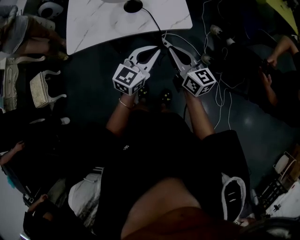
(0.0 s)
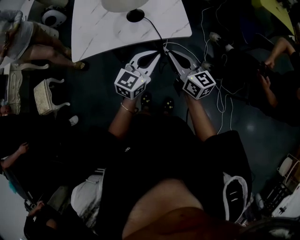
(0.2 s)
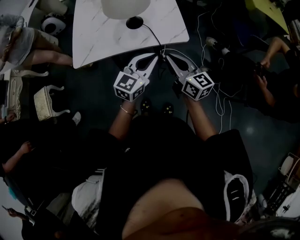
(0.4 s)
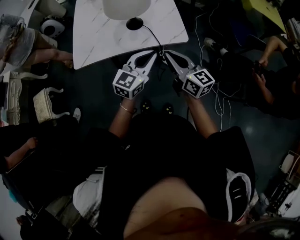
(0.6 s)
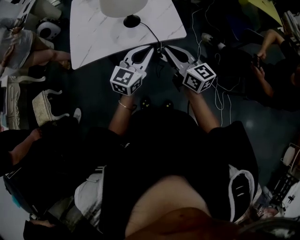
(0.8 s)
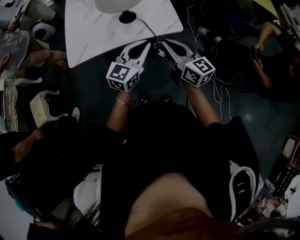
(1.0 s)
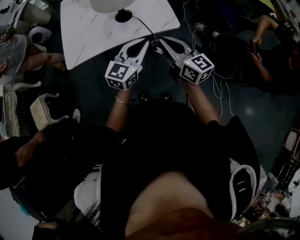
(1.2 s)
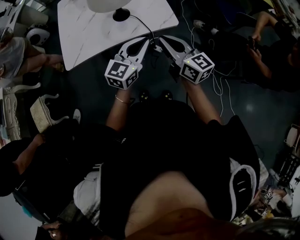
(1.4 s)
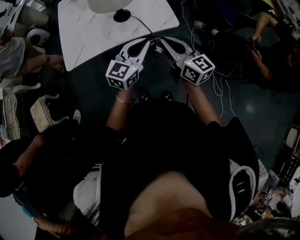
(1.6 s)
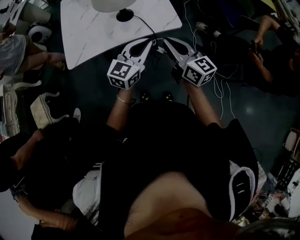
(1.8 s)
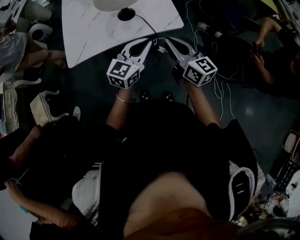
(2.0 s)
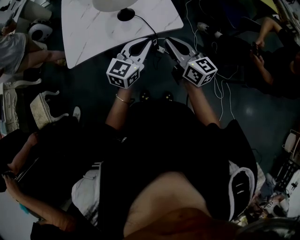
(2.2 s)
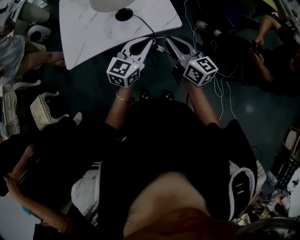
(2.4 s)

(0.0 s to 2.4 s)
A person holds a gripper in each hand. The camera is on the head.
0.0 s - 1.2 s: The grippers both shift upward by some 5 cm.
1.2 s - 2.4 s: The grippers stay close to where they were, moving slightly.

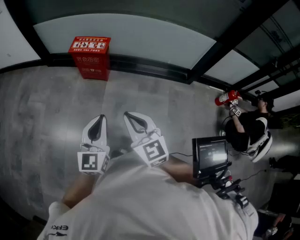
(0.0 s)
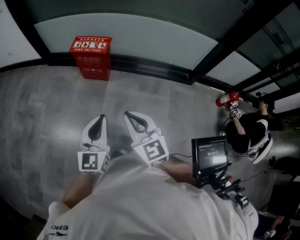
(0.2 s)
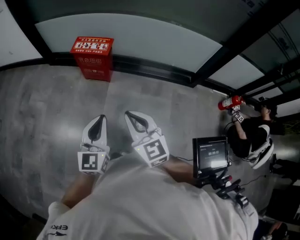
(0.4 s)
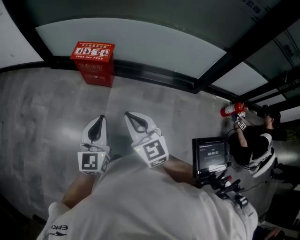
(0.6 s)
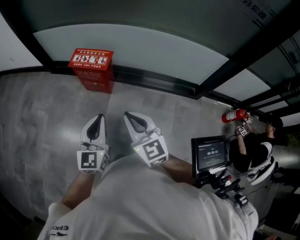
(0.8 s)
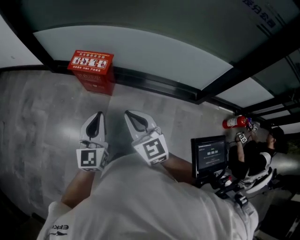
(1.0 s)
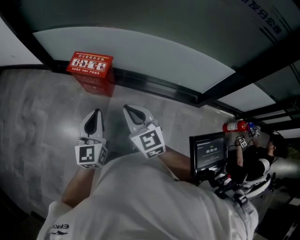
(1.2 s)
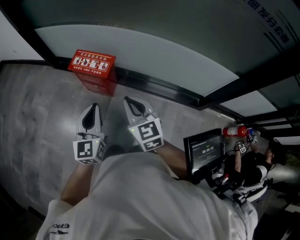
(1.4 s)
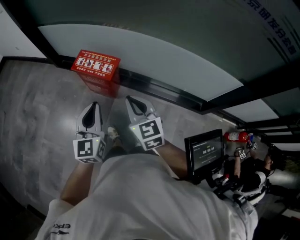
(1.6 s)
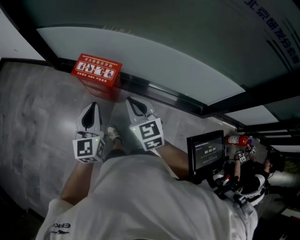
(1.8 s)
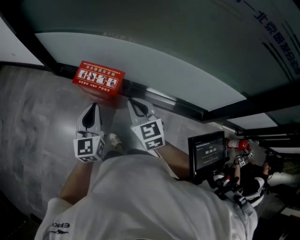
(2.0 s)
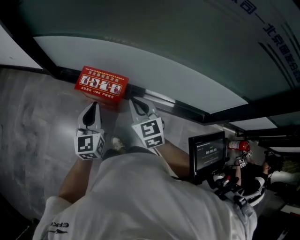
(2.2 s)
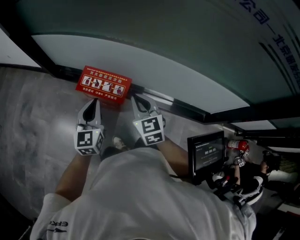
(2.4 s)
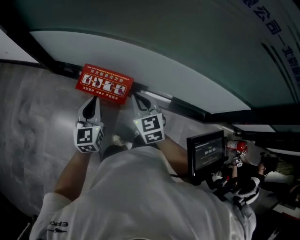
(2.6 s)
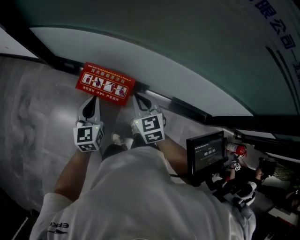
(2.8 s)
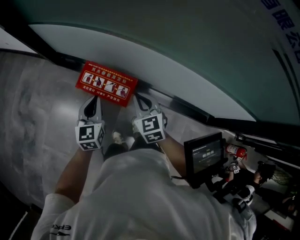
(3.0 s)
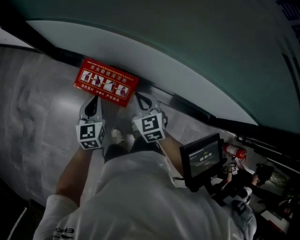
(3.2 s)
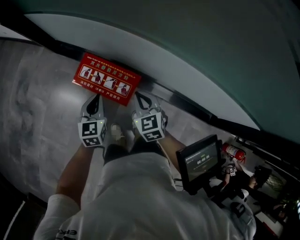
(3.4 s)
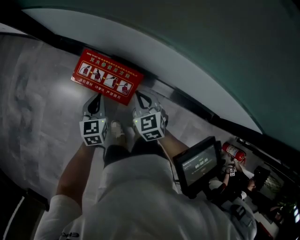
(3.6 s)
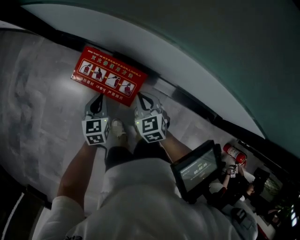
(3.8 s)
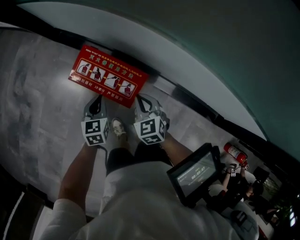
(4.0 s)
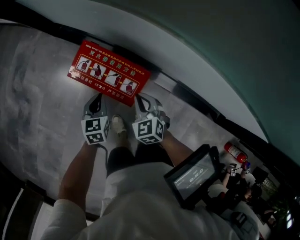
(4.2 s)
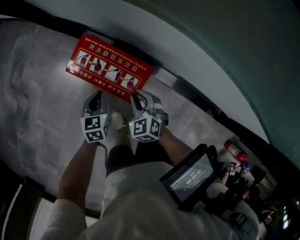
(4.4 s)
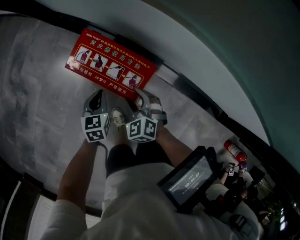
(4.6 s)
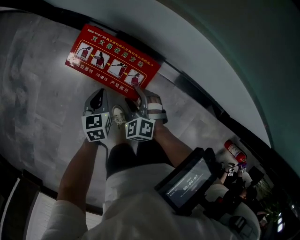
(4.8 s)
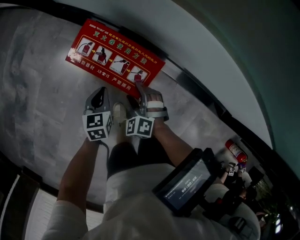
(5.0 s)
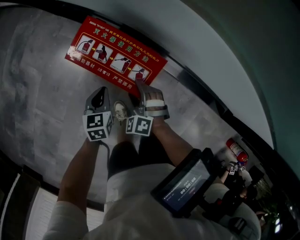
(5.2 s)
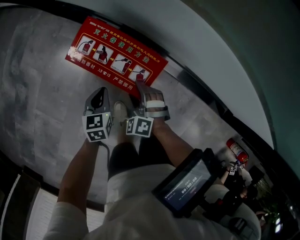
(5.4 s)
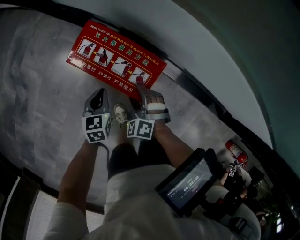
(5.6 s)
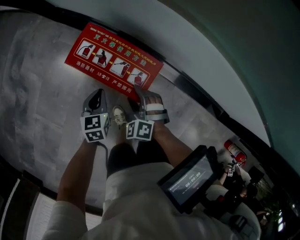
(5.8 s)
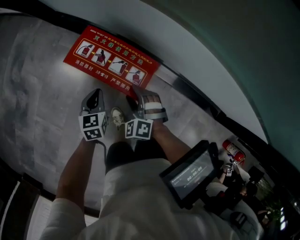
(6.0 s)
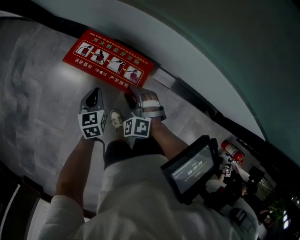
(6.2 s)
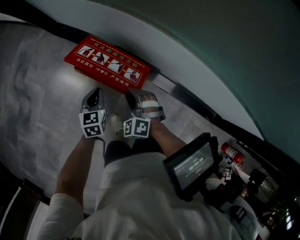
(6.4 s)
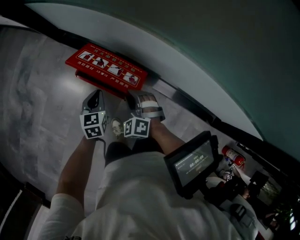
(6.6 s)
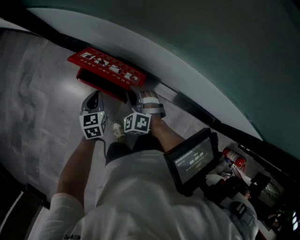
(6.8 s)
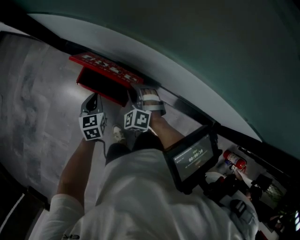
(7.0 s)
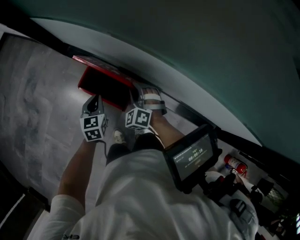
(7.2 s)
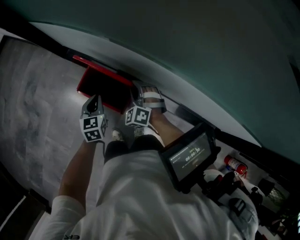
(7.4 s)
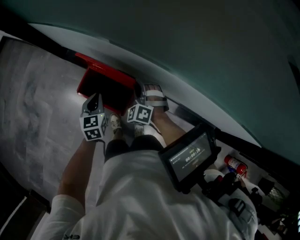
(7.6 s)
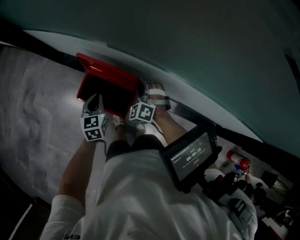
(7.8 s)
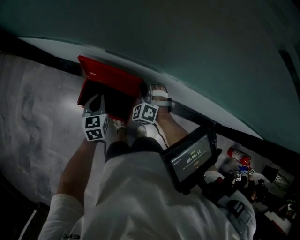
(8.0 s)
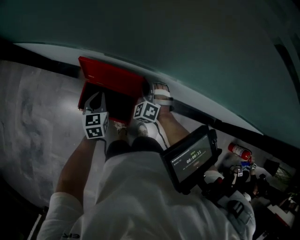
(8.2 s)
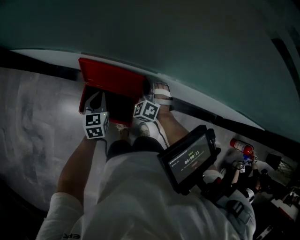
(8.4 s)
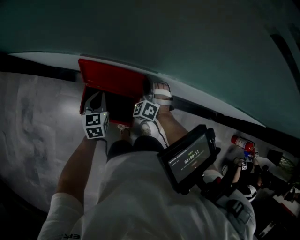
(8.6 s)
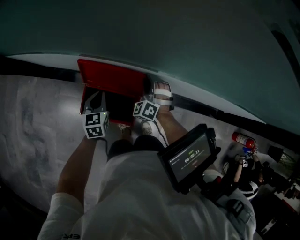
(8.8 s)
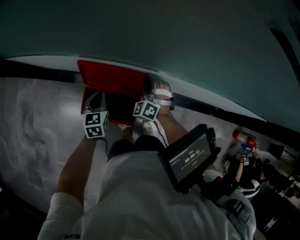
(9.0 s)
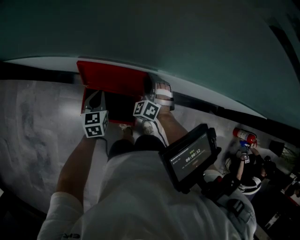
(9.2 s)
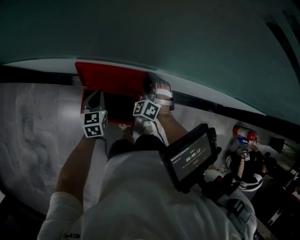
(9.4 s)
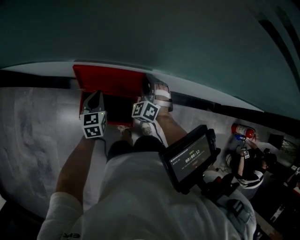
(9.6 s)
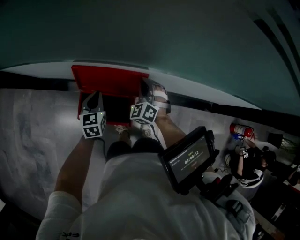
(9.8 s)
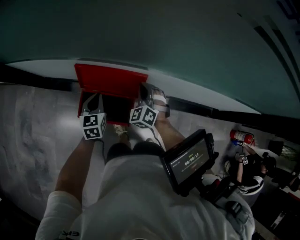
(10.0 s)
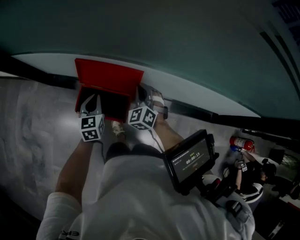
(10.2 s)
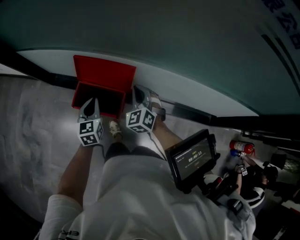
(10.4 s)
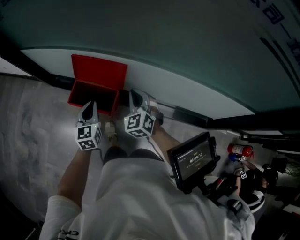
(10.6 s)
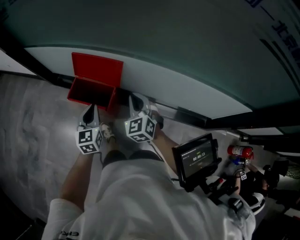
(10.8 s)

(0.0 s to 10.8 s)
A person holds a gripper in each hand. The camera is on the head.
0.0 s - 1.6 s: The two grippers go some 35 cm forward.
1.6 s - 3.0 s: The left gripper travels forward and downward by approximately 30 cm. Meanwhile the right gripper moves forward, approximately 30 cm.
3.0 s - 4.6 s: Both grippers move downward, about 25 cm. The left gripper swivels approximately 30 degrees. The right gripper changes its angle by some 30 degrees, and opens its fingers.
4.6 s - 6.2 s: The right gripper turns by approximately 20 degrees.
6.2 s - 7.8 s: The left gripper is displaced upward and forward by some 20 cm; the right gripper moves forward, upward and to the right, approximately 25 cm.
7.8 s - 9.2 s: The right gripper heads to the right, covering roughly 5 cm, and changes its angle by approximately 20 degrees. The left gripper shifts roughly 5 cm forward.
9.2 s - 10.8 s: The left gripper heads backward, to the right and upward, covering approximately 25 cm. The right gripper heads backward, upward and to the right, covering approximately 25 cm, turns by about 30 degrees, and closes its fingers.

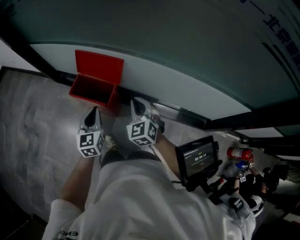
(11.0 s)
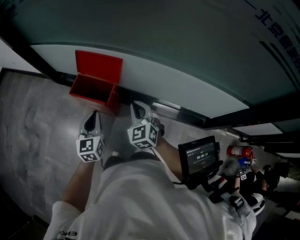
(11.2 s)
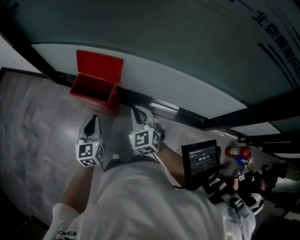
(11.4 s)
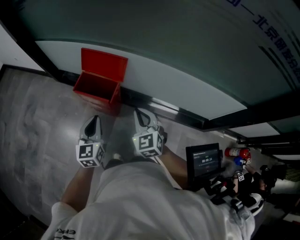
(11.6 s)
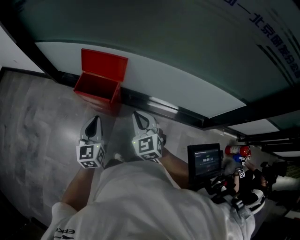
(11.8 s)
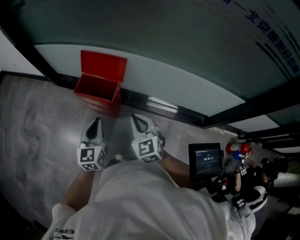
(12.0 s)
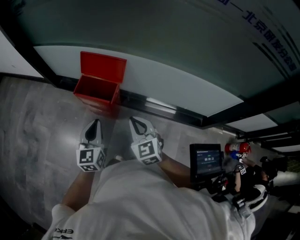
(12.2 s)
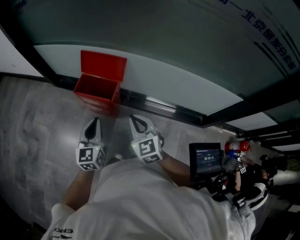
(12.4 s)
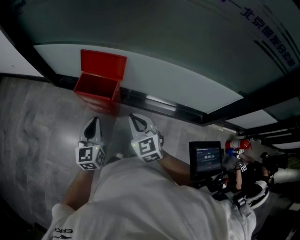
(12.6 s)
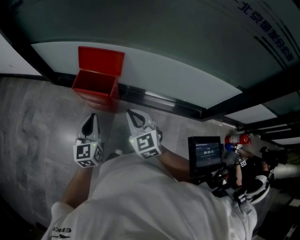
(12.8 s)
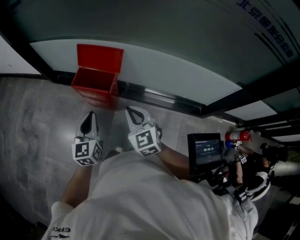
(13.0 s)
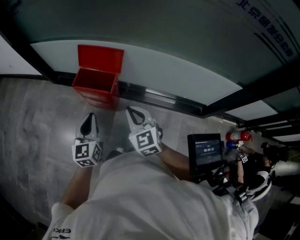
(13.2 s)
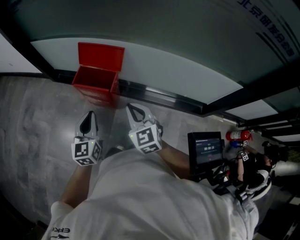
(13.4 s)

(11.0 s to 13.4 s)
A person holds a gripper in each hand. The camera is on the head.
11.0 s - 12.2 s: The right gripper heads backward and to the left, covering some 15 cm, while the left gripper shifts roughly 10 cm backward and upward.
12.2 s - 13.4 s: The grippers move only a little.

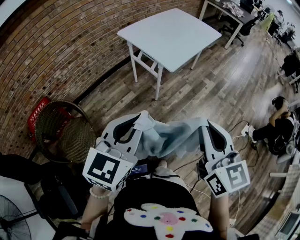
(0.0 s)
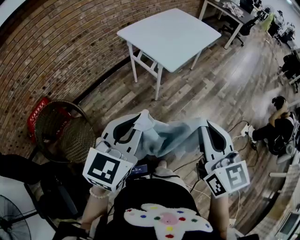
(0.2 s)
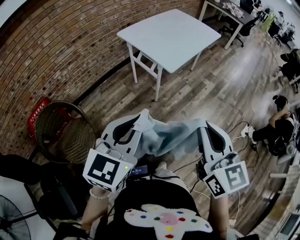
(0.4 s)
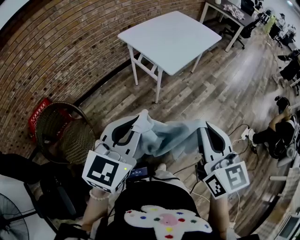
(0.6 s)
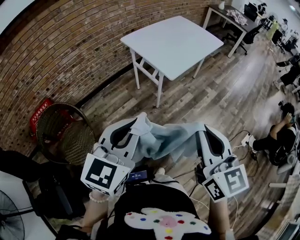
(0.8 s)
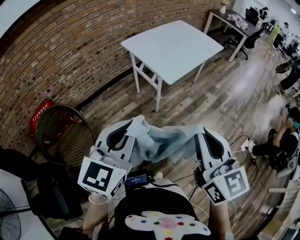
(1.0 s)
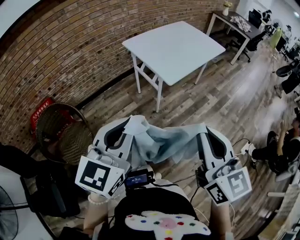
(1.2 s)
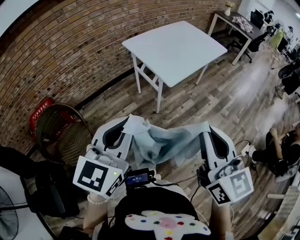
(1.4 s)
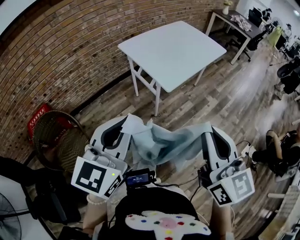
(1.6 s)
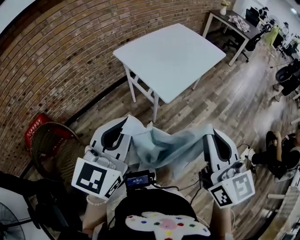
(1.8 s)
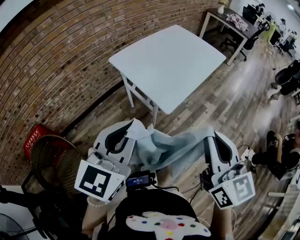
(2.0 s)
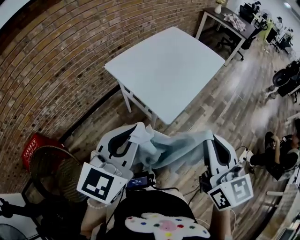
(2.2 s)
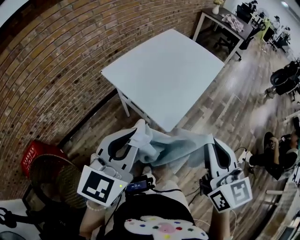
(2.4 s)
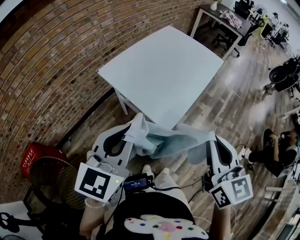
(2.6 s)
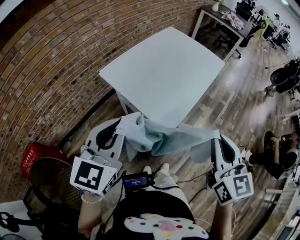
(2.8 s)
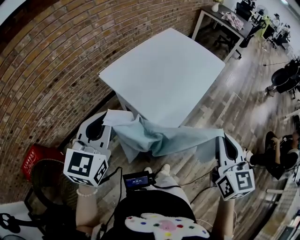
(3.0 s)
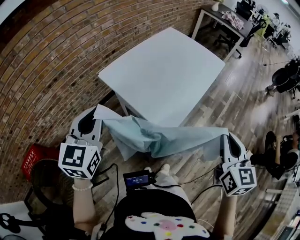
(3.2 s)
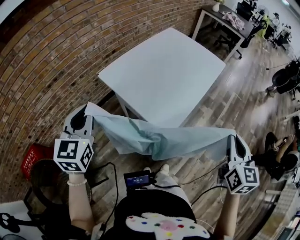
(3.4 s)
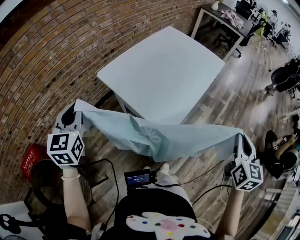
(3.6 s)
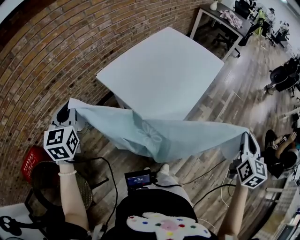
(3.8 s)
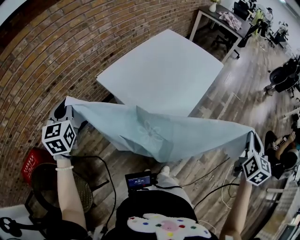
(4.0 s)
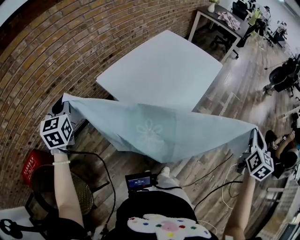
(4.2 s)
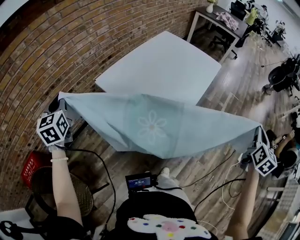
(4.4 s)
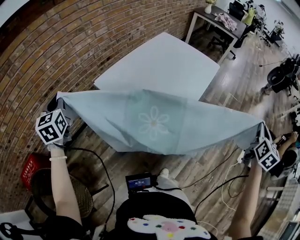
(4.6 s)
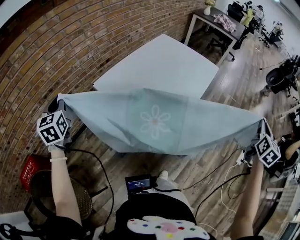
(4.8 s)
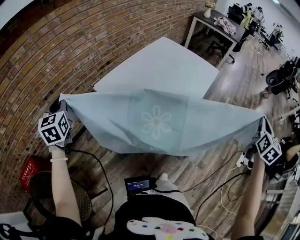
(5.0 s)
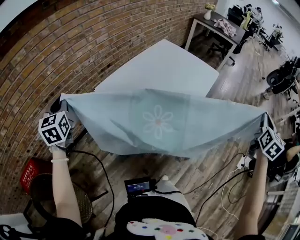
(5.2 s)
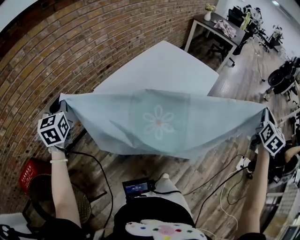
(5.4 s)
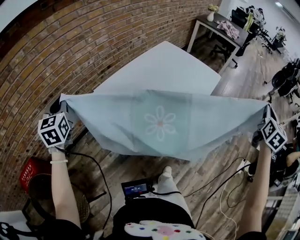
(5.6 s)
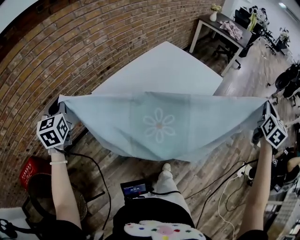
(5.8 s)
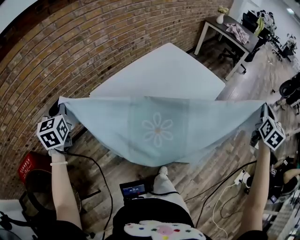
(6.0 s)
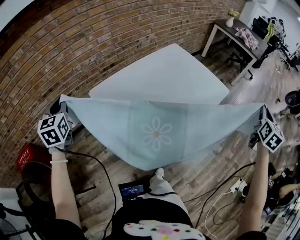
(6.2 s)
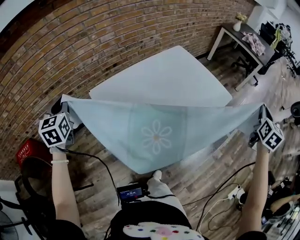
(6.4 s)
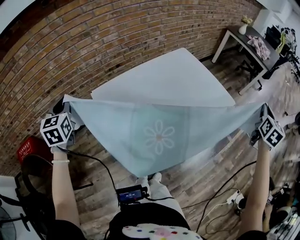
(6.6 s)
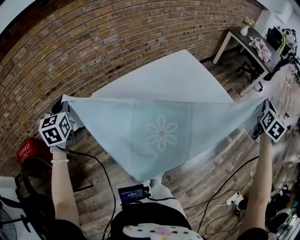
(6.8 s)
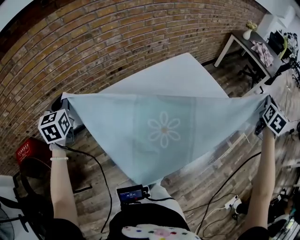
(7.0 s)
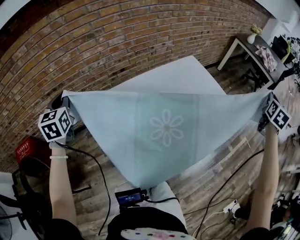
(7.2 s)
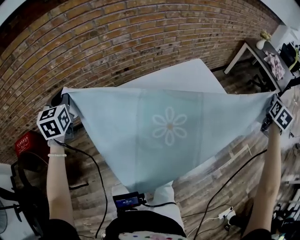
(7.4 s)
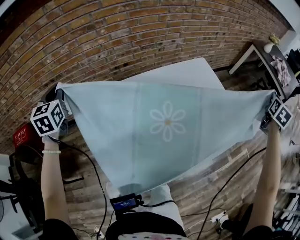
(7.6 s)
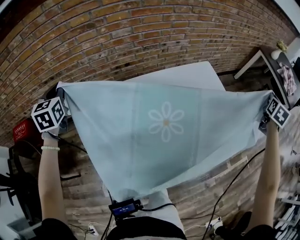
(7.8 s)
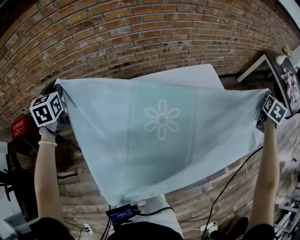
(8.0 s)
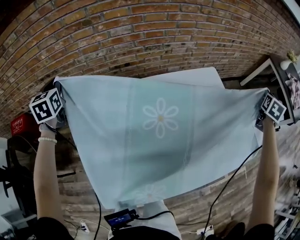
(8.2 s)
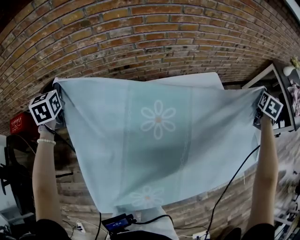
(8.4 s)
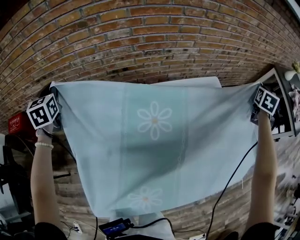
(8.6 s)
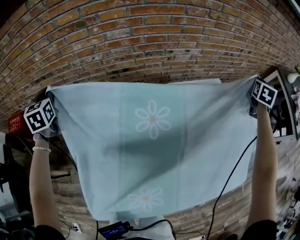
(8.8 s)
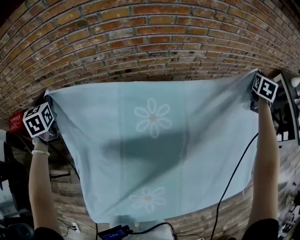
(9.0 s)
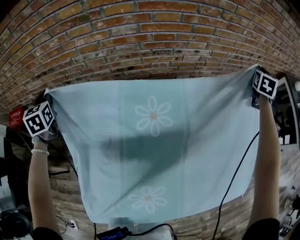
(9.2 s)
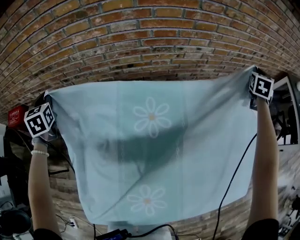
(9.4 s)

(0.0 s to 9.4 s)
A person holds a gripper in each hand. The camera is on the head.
0.0 s - 1.6 s: The two grippers go roughly 10 cm forward.
1.6 s - 3.2 s: The left gripper goes approximately 35 cm forward and to the left, while the right gripper travels forward by about 25 cm, and rotates roughly 30 degrees.
3.2 s - 4.8 s: The right gripper shifts about 25 cm to the right, and turns by about 30 degrees; the left gripper is displaced to the left and forward by approximately 20 cm, and swivels about 20 degrees.
4.8 s - 6.2 s: The left gripper moves to the right and forward, about 10 cm. Meanwhile the right gripper moves forward, roughly 30 cm.
6.2 s - 7.8 s: The left gripper shifts roughly 15 cm forward; the right gripper travels forward by about 50 cm.
7.8 s - 9.4 s: The left gripper travels downward and to the left by about 15 cm, and swivels roughly 20 degrees. The right gripper travels forward and to the left by roughly 40 cm, and changes its angle by about 30 degrees.
